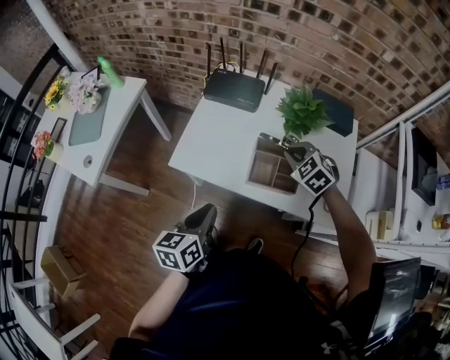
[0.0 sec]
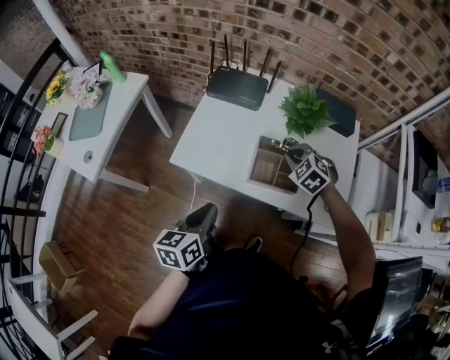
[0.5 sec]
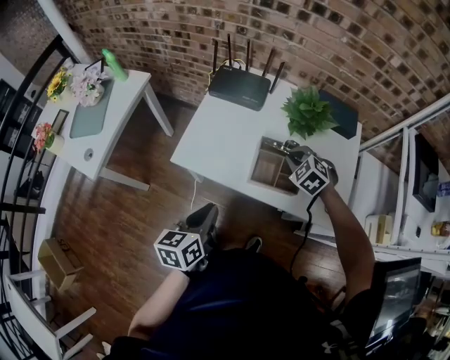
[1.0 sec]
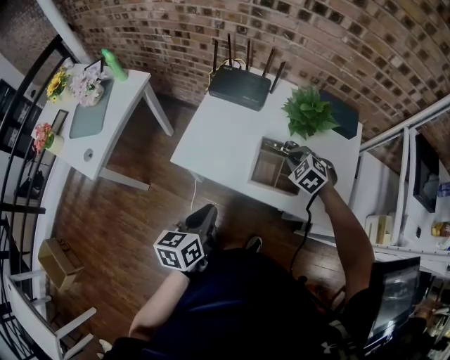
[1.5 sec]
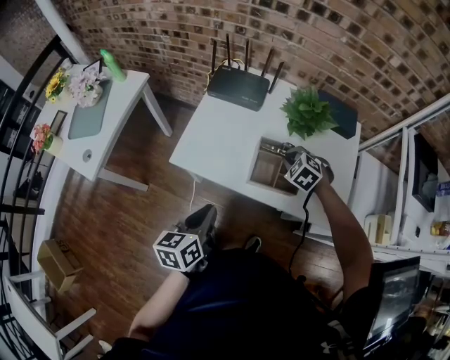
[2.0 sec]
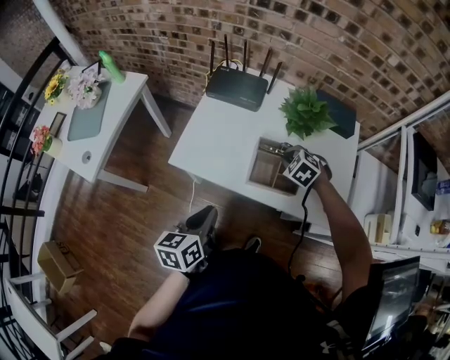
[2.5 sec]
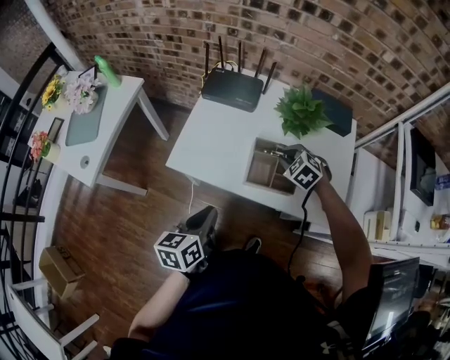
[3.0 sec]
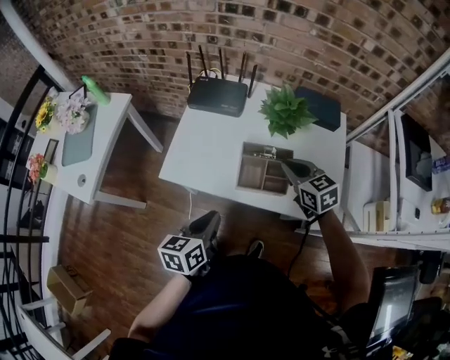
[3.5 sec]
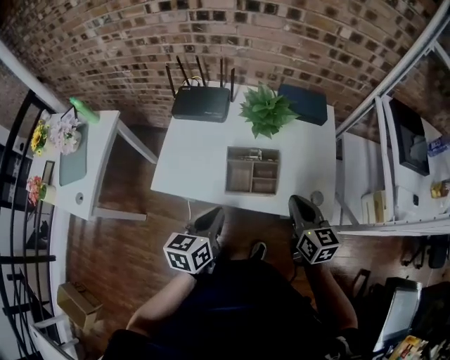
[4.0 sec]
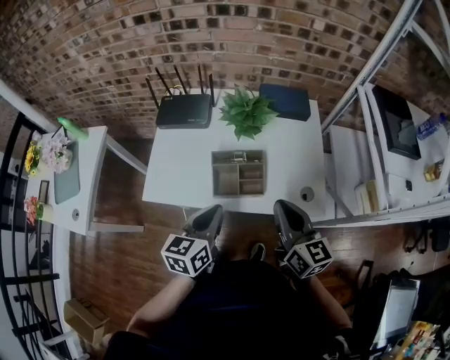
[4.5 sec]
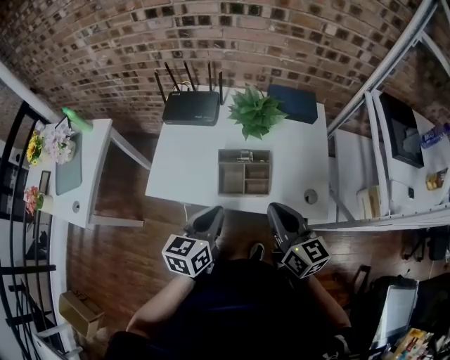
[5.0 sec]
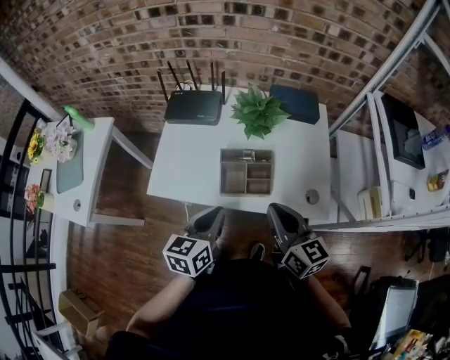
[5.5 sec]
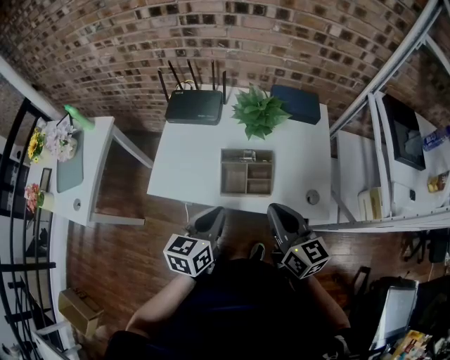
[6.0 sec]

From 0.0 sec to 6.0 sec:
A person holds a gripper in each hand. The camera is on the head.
From 0.0 sec to 2.0 sec: The right gripper moves downward, about 5 cm.
From 2.0 sec to 4.0 sec: The left gripper moves to the right, roughly 10 cm; the right gripper travels backward, upward and to the right by some 20 cm, and twists approximately 60 degrees clockwise, seen from behind.
From 4.0 sec to 6.0 sec: The right gripper heads to the left and upward, covering roughly 10 cm.

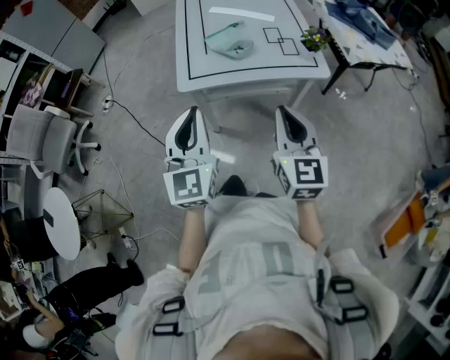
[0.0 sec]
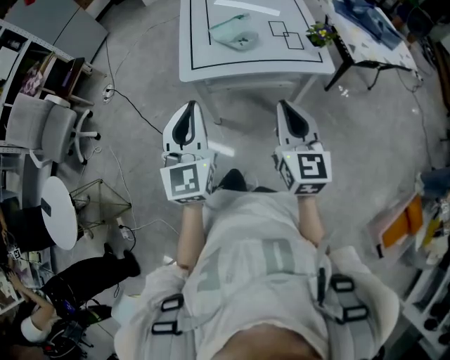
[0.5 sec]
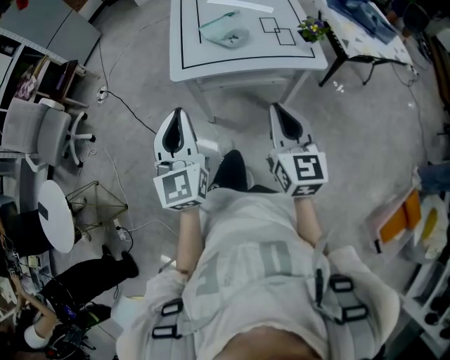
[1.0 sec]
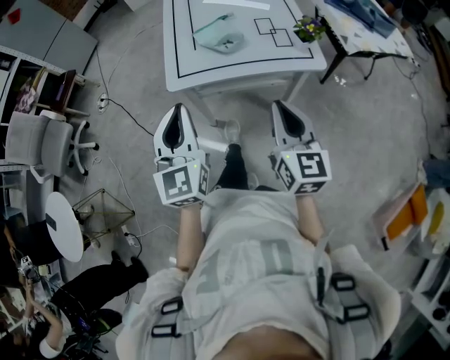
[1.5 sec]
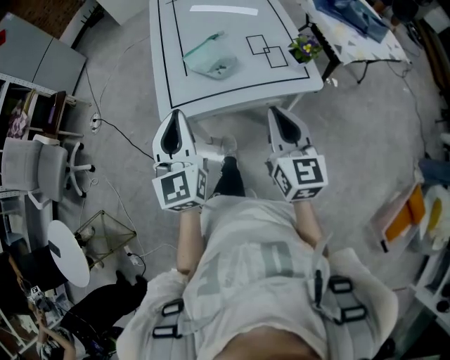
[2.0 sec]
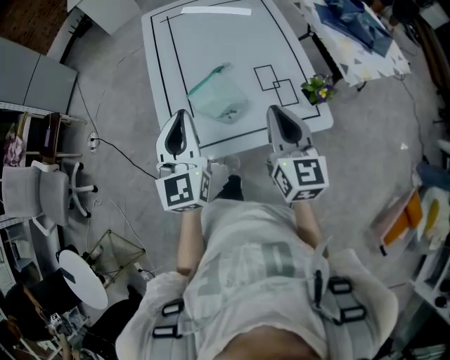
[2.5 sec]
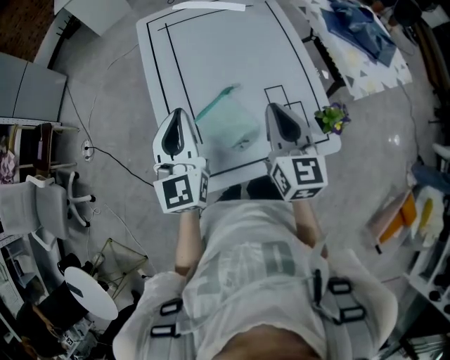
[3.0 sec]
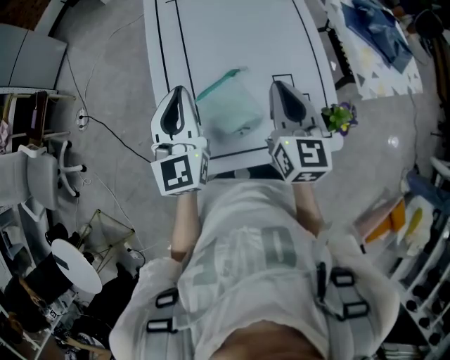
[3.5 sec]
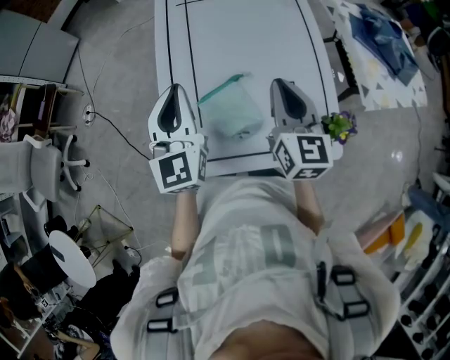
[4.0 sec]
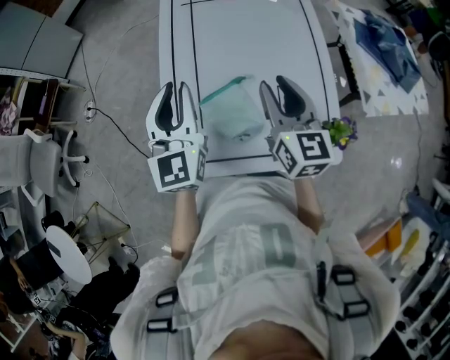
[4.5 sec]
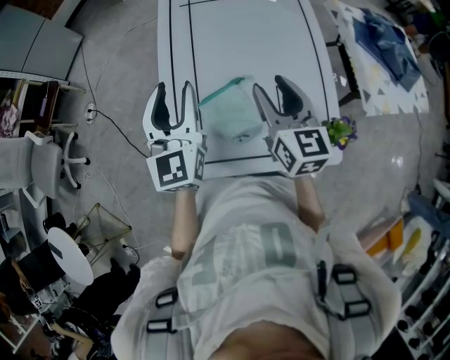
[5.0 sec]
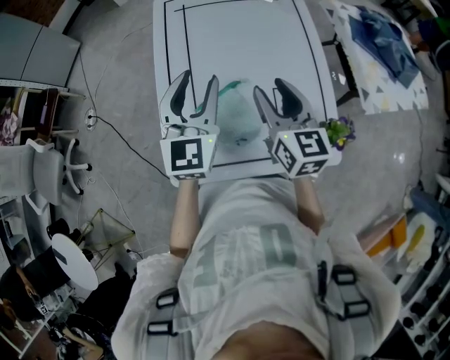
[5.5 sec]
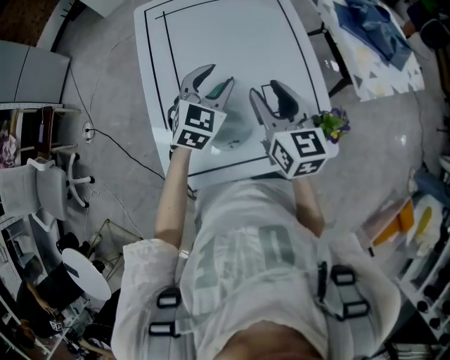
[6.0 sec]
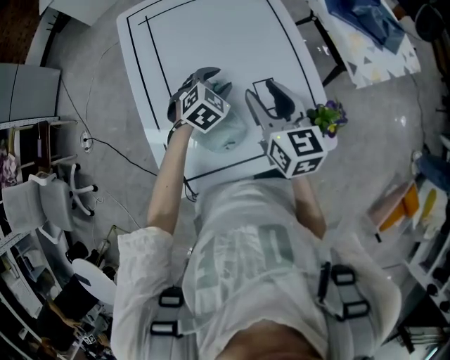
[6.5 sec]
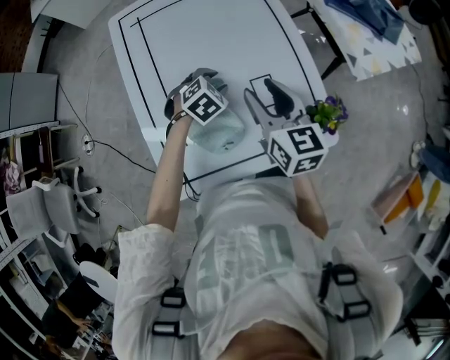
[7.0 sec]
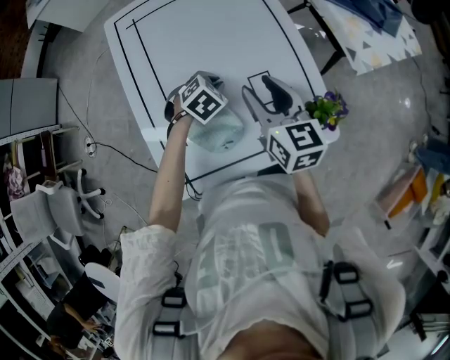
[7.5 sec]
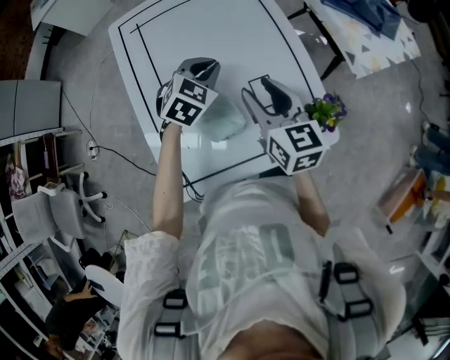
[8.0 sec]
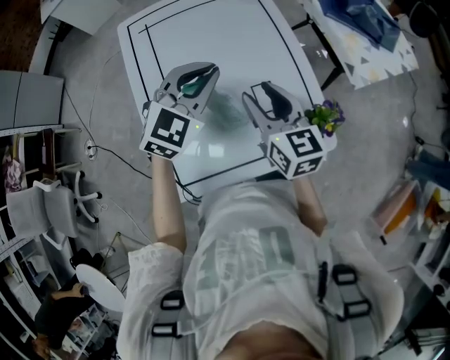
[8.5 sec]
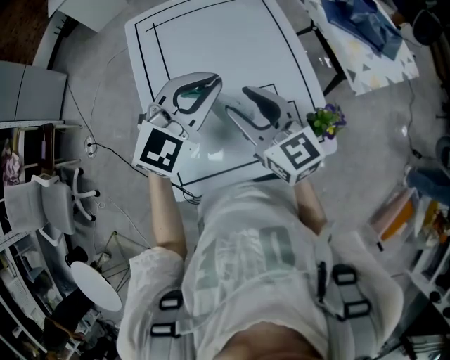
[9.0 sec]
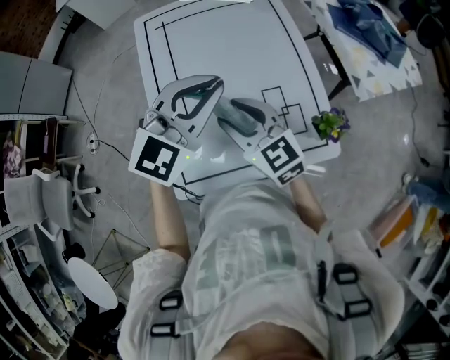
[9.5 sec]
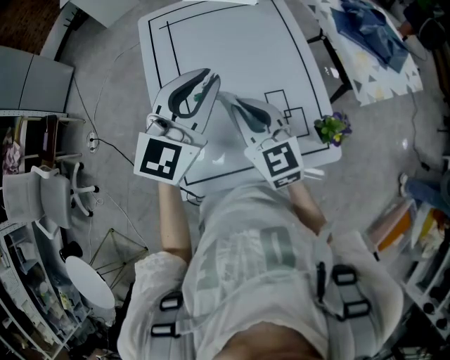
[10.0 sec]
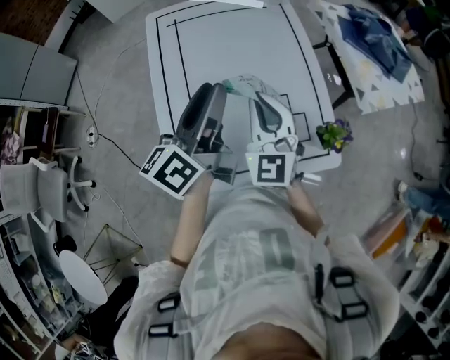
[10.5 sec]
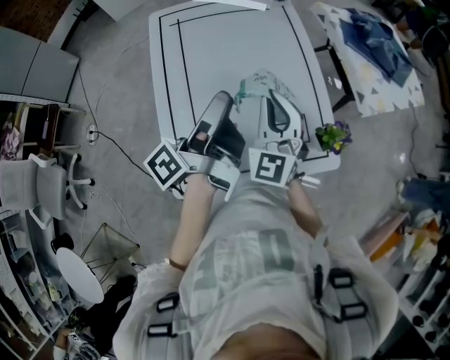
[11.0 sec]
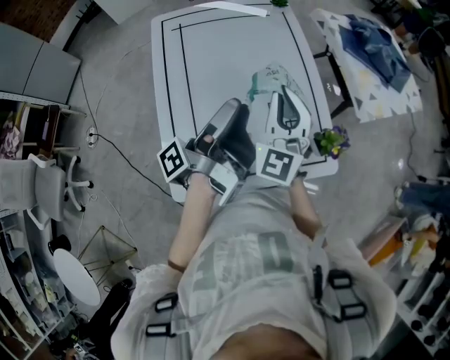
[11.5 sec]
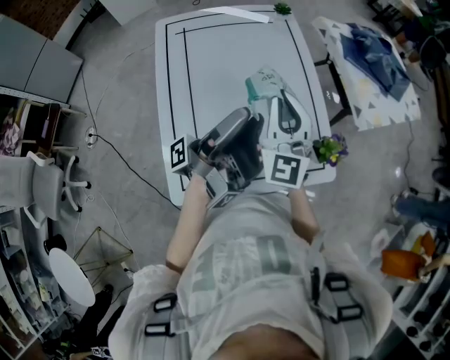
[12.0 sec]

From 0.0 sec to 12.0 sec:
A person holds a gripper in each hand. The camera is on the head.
From 0.0 sec to 2.0 sec: The grippers both shift forward by roughly 10 cm.
From 2.0 sec to 4.0 sec: Both grippers travel together forward, about 30 cm.
From 4.0 sec to 6.0 sec: The right gripper opens. Meanwhile the left gripper goes roughly 20 cm to the right, downward and forward, changes its angle by about 50 degrees, and opens.
From 6.0 sec to 8.0 sec: The left gripper moves roughly 15 cm downward and comes back, and closes.
From 8.0 sec to 10.0 sec: The right gripper travels to the left by approximately 10 cm, rotates some 30 degrees, and closes up, while the left gripper is displaced upward and backward by some 20 cm, and points its fingers roughly 40 degrees further upward.
From 10.0 sec to 12.0 sec: The right gripper moves upward, to the right and forward, some 10 cm, and turns by approximately 40 degrees. Meanwhile the left gripper goes roughly 5 cm to the right, twists roughly 120 degrees counterclockwise, seen from behind, and opens its fingers.

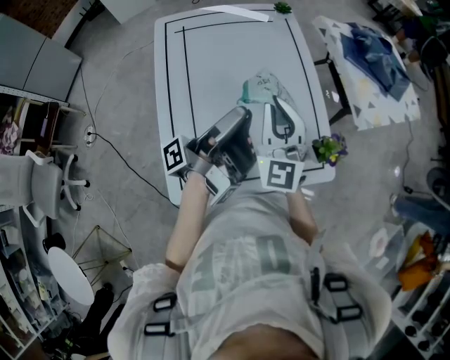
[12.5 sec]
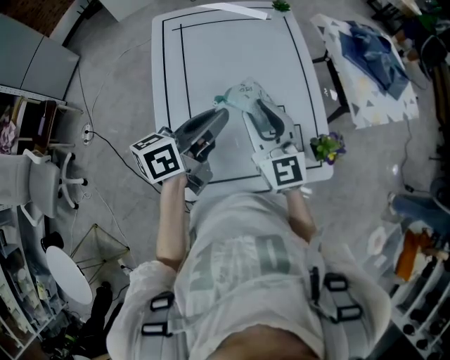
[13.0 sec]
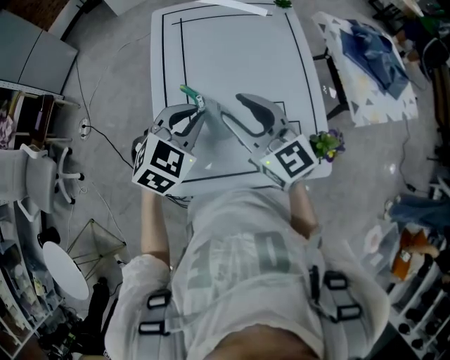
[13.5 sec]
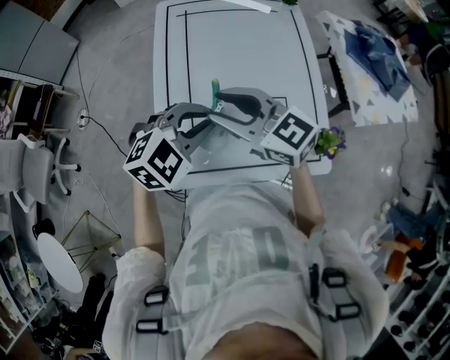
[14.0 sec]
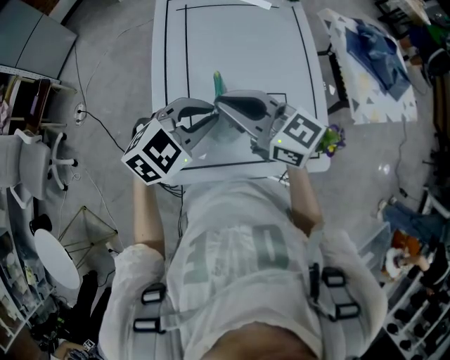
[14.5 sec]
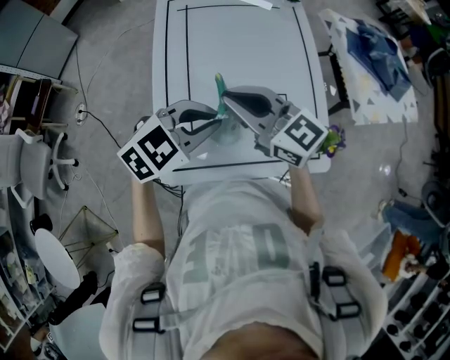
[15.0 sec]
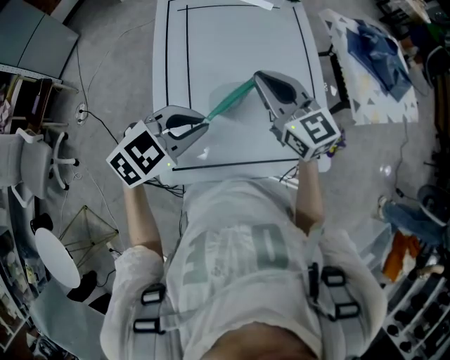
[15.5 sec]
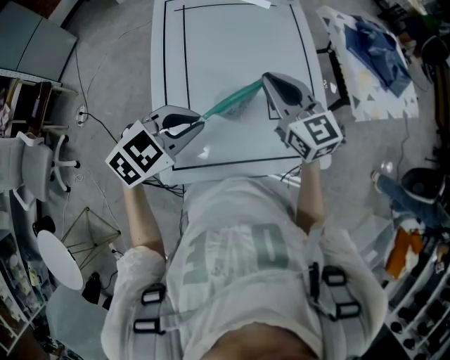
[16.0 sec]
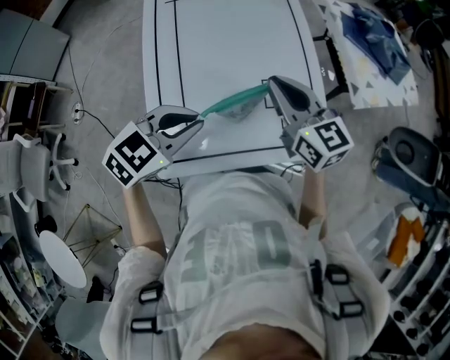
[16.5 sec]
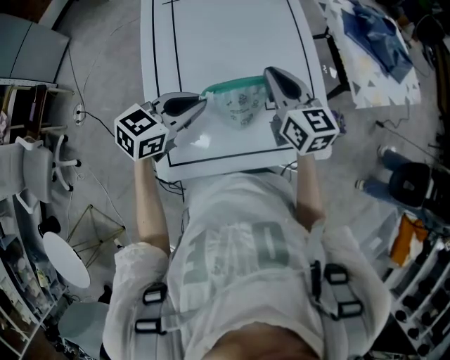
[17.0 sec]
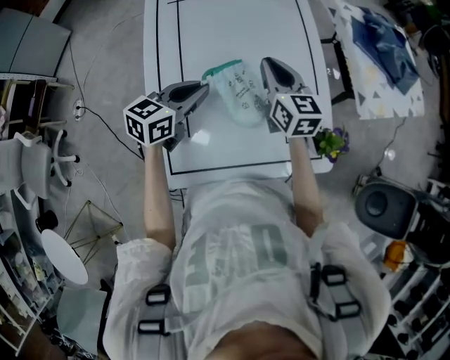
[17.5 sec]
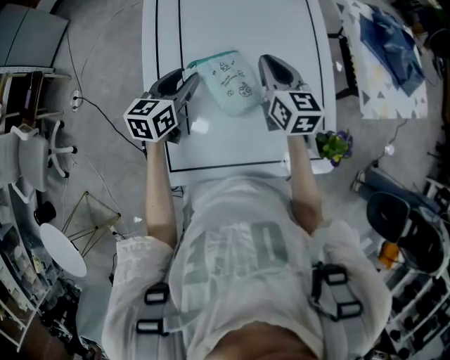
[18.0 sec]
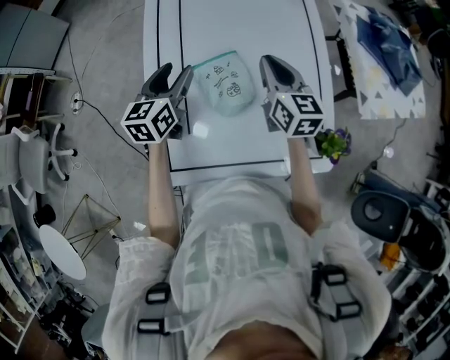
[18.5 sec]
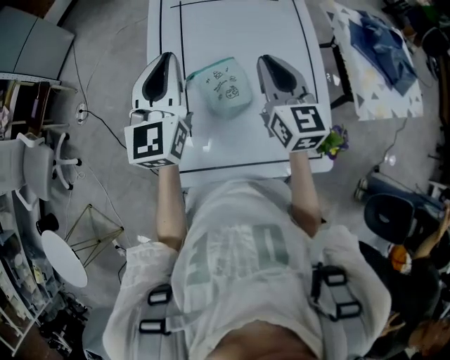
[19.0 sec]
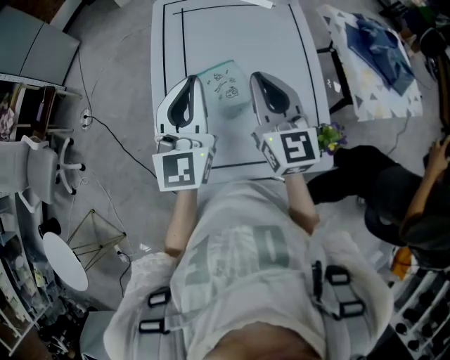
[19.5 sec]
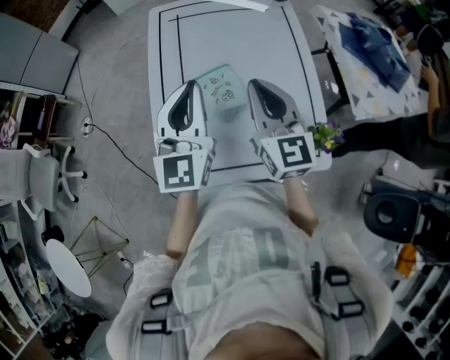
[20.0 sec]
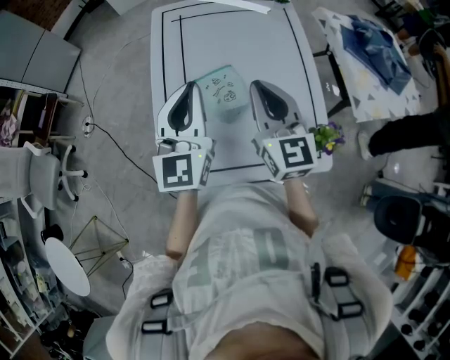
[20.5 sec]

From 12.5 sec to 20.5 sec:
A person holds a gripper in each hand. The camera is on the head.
From 12.5 sec to 14.5 sec: The left gripper shifts approximately 10 cm downward, and points its fingers some 70 degrees further downward; the right gripper heads to the left and backward, covering some 10 cm, rotates roughly 70 degrees, and opens, then closes once more.
From 14.5 sec to 16.5 sec: The right gripper travels to the right by roughly 10 cm, and rotates approximately 30 degrees.
From 16.5 sec to 18.5 sec: The left gripper travels forward, to the left and downward by some 20 cm, turns by roughly 60 degrees, and opens. Meanwhile the right gripper travels forward and downward by some 15 cm.
From 18.5 sec to 20.5 sec: The grippers both shift upward and backward by approximately 20 cm. The right gripper rotates about 20 degrees, while the left gripper turns by some 30 degrees, and closes.
